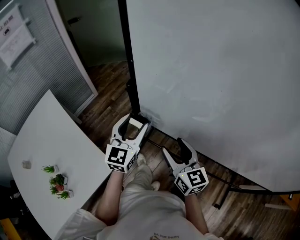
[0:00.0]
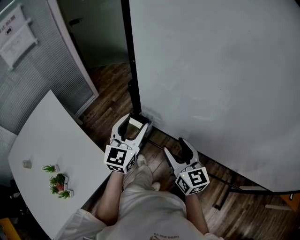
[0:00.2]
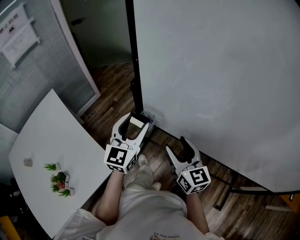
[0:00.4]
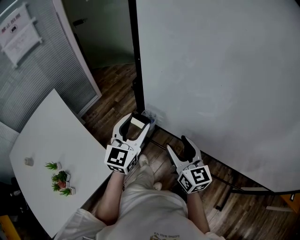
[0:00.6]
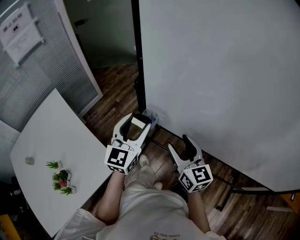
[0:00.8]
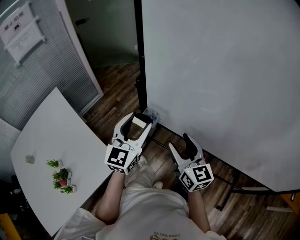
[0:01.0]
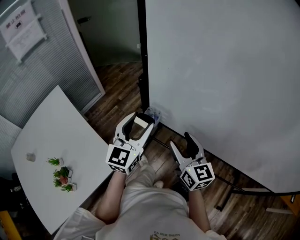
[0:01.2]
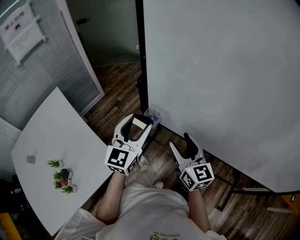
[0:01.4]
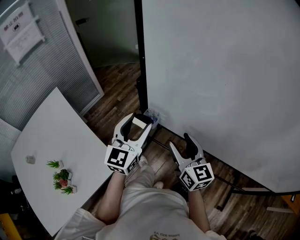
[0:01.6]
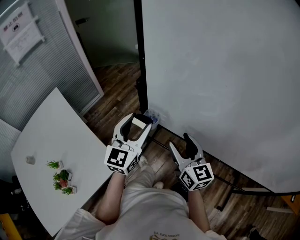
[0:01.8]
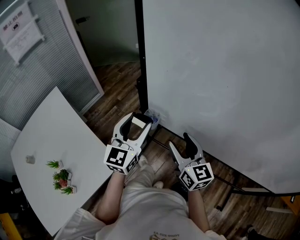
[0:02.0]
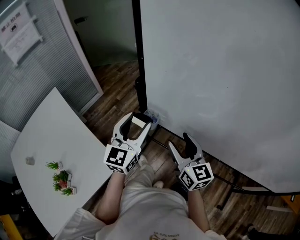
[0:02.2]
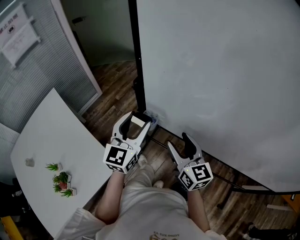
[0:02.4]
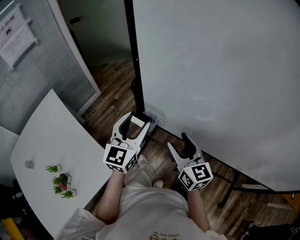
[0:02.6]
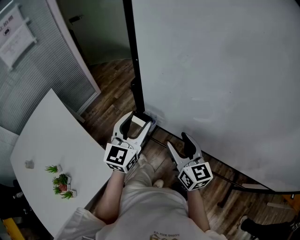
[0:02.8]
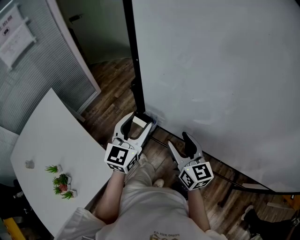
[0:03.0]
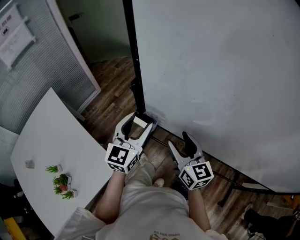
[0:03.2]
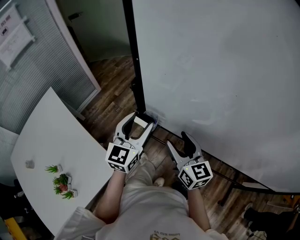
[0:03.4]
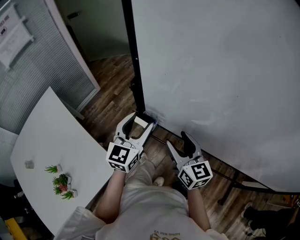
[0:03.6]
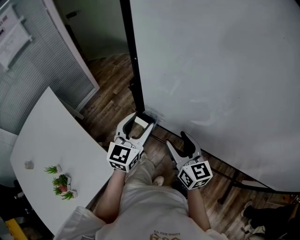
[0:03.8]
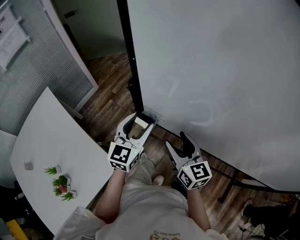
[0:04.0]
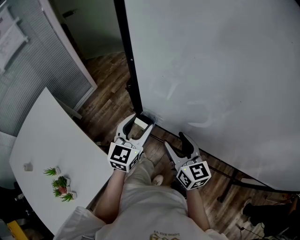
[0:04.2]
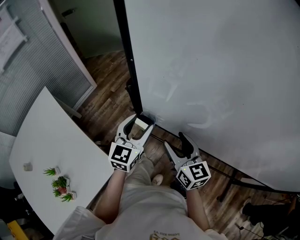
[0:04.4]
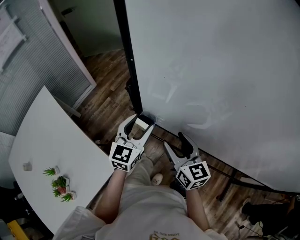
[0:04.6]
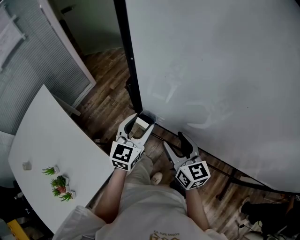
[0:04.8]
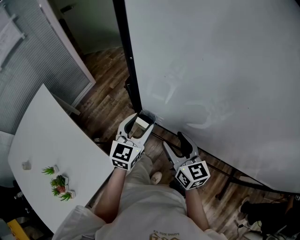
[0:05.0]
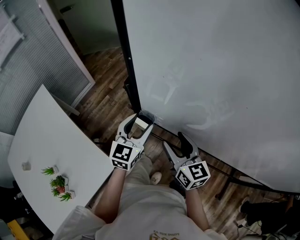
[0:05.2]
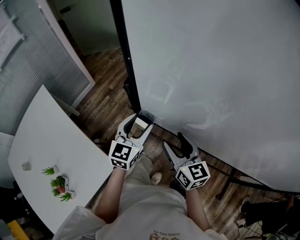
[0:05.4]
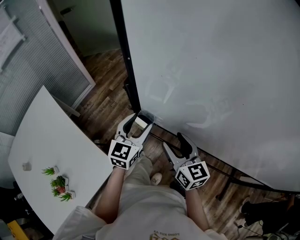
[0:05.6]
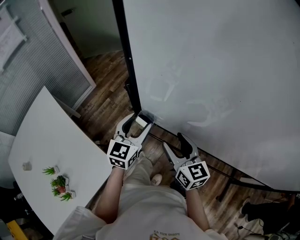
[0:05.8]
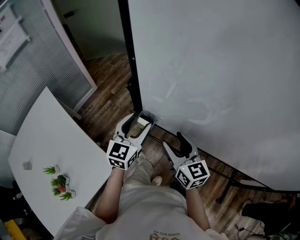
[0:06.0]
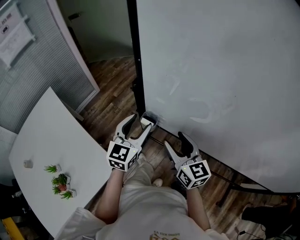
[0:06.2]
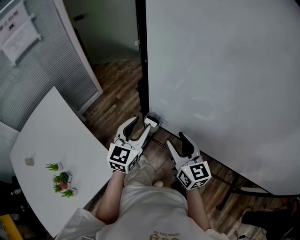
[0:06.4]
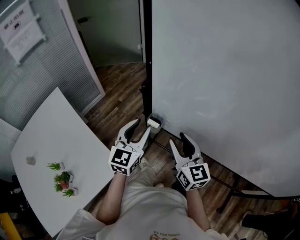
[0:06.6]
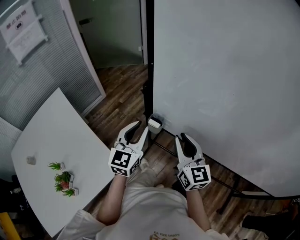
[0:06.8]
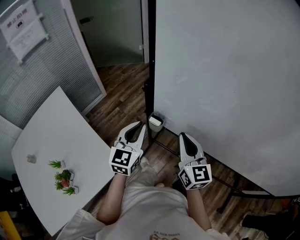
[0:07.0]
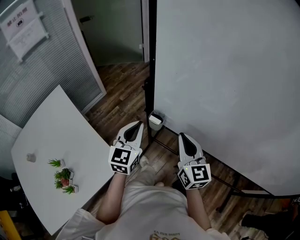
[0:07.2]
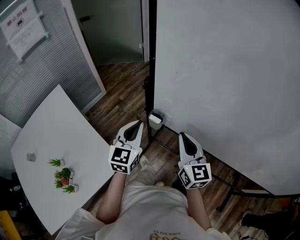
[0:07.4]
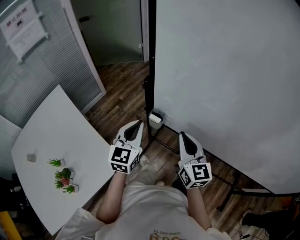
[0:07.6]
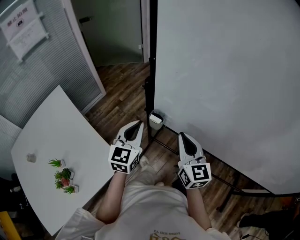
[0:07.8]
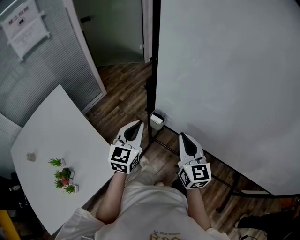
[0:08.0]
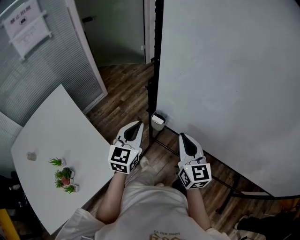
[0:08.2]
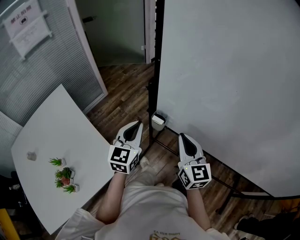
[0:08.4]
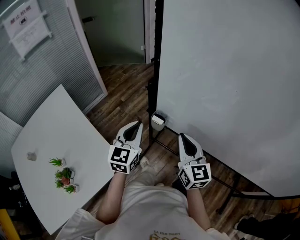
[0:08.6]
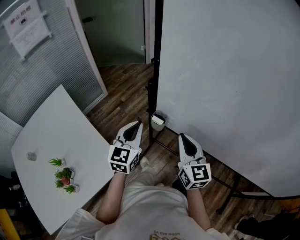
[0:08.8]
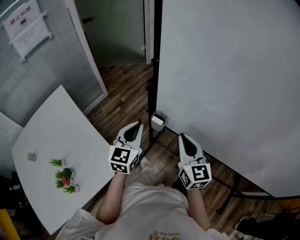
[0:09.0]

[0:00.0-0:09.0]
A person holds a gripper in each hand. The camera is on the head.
0:00.0 to 0:01.6: The left gripper changes place by approximately 5 cm.
0:01.6 to 0:03.0: There are only small adjustments of the grippers.
0:03.0 to 0:04.4: The left gripper travels downward by approximately 5 cm.
0:04.4 to 0:06.0: The grippers move only a little.
0:06.0 to 0:07.6: The left gripper is displaced backward by some 5 cm, and closes up. Meanwhile the right gripper shifts approximately 5 cm upward, and closes.
0:07.6 to 0:09.0: The grippers stay close to where they were, moving slightly.

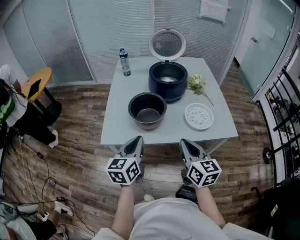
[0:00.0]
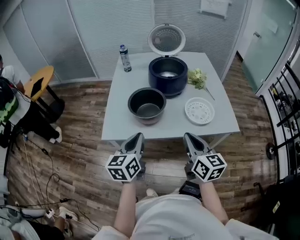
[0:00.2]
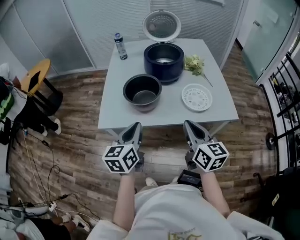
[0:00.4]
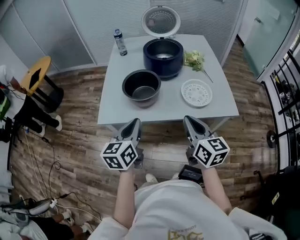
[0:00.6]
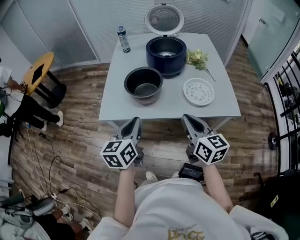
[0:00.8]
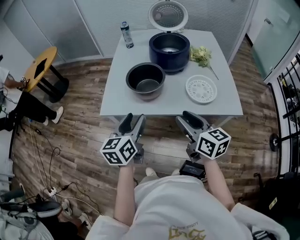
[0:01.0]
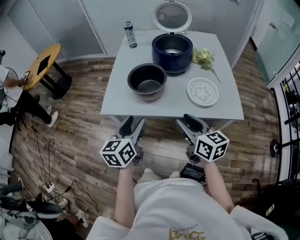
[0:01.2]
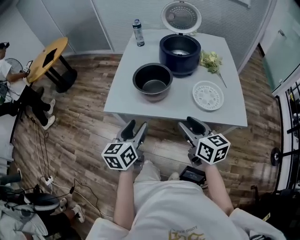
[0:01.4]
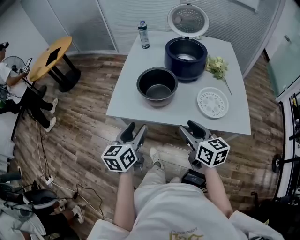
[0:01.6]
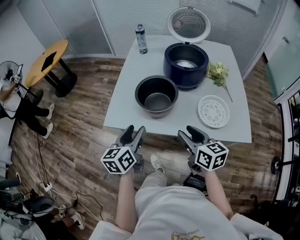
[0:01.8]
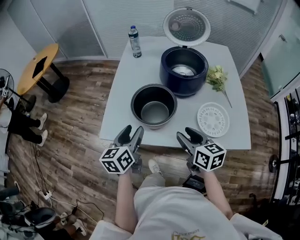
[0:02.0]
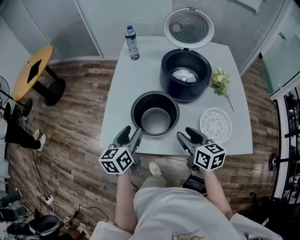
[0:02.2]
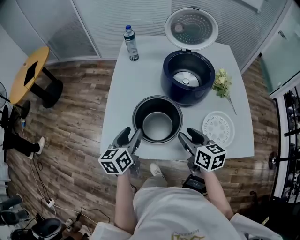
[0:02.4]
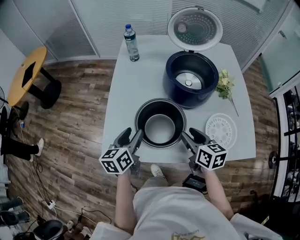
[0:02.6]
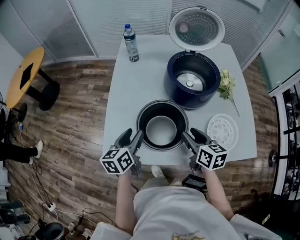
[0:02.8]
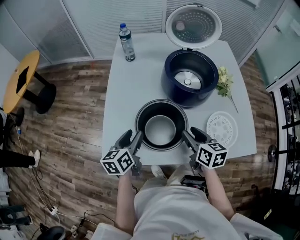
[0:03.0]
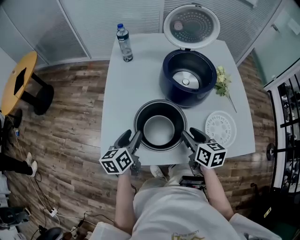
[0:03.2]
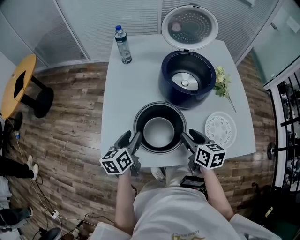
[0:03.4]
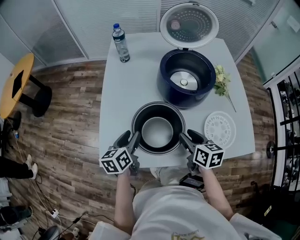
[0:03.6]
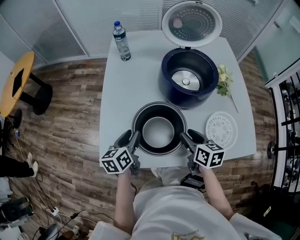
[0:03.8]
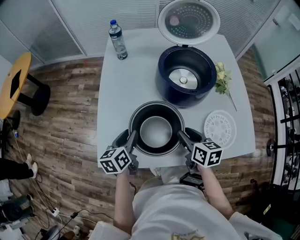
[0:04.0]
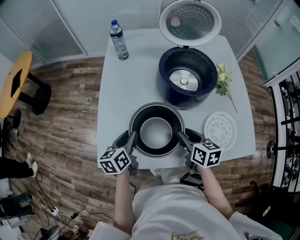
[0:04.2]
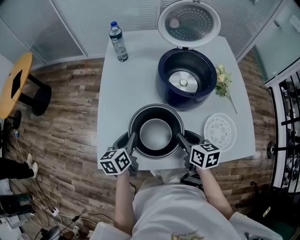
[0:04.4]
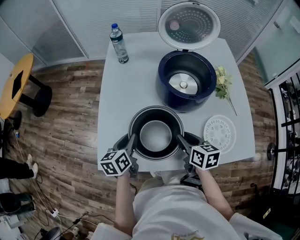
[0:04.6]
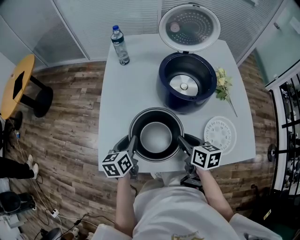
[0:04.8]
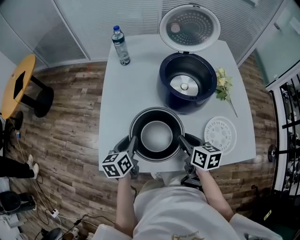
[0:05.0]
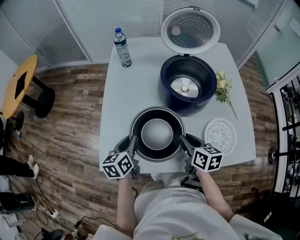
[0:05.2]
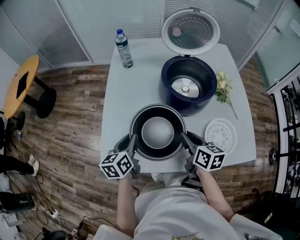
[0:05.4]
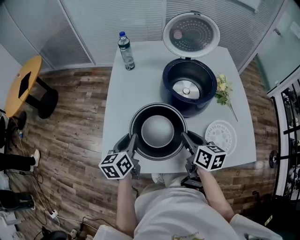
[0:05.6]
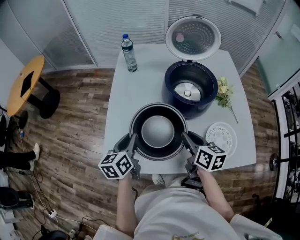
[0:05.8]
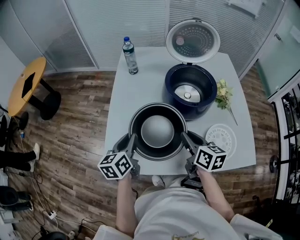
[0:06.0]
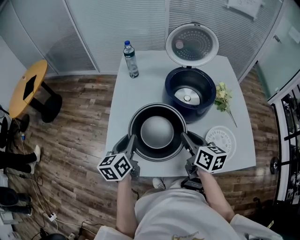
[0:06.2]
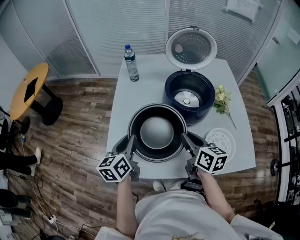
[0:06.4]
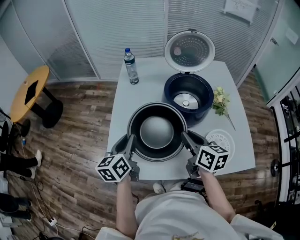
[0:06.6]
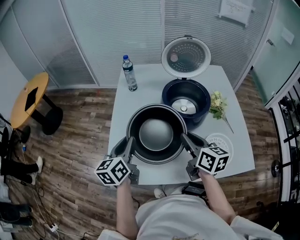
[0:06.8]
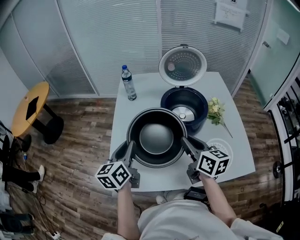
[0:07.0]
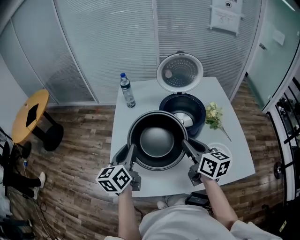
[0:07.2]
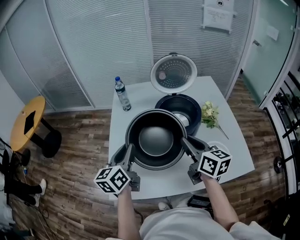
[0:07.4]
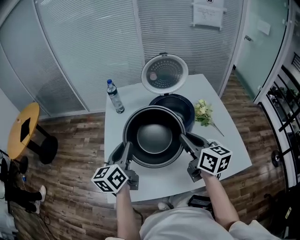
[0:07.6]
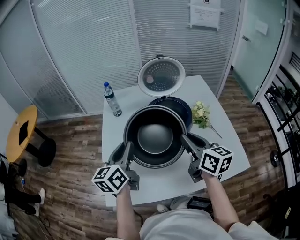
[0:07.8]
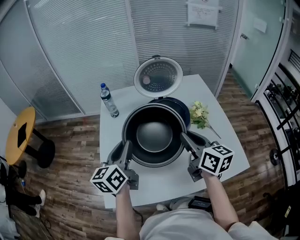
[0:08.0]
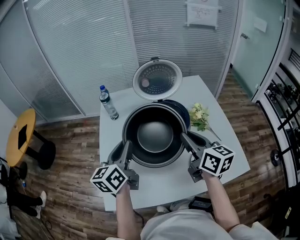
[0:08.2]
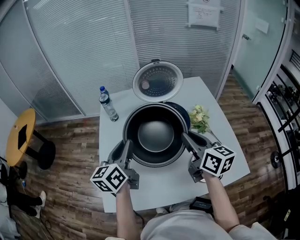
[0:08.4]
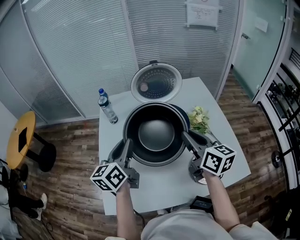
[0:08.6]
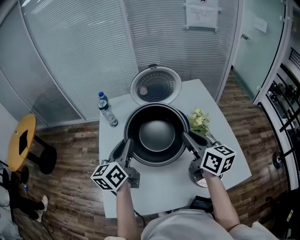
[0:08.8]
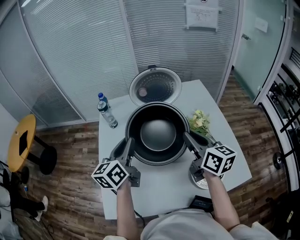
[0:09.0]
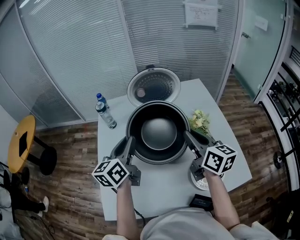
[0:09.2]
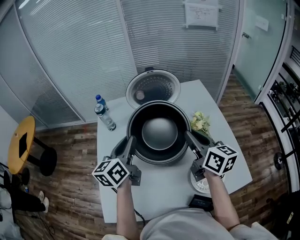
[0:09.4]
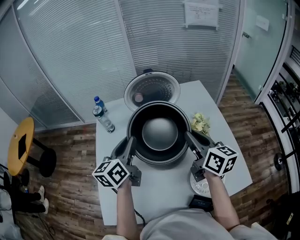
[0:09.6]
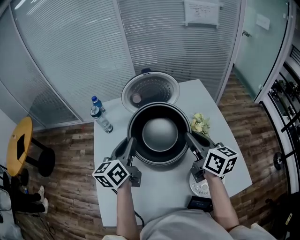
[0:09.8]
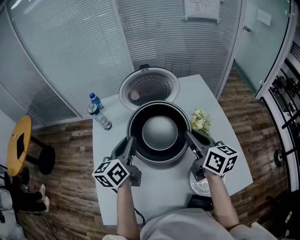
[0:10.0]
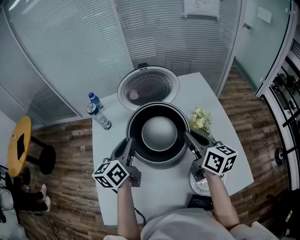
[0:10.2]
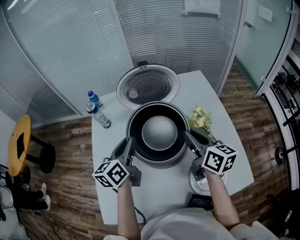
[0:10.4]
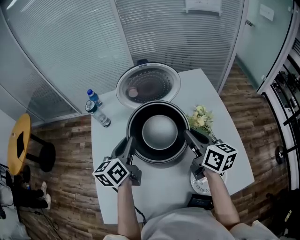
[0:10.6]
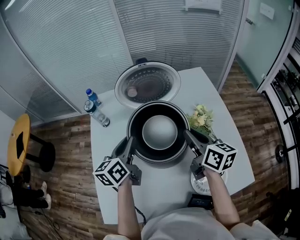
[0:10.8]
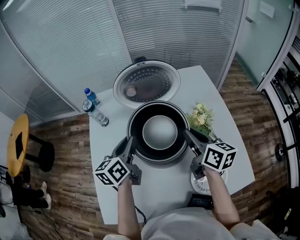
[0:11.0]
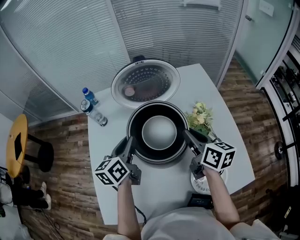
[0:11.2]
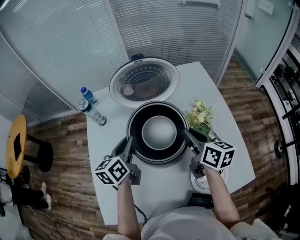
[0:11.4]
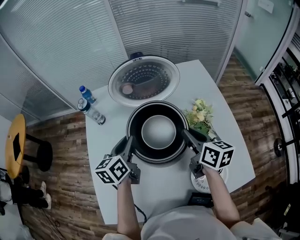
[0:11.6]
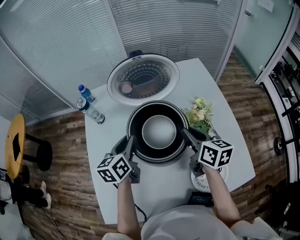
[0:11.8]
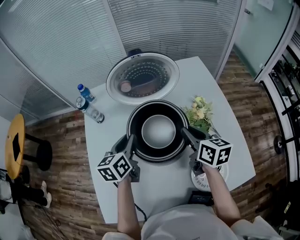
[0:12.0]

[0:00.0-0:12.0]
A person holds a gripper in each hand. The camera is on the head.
0:00.0 to 0:01.6: The left gripper opens, while the right gripper changes place by some 5 cm, changes its angle by some 20 degrees, and opens its fingers.
0:01.6 to 0:03.0: Both grippers move forward, approximately 25 cm. The right gripper rotates about 20 degrees.
0:03.0 to 0:04.4: The left gripper closes up.
0:04.4 to 0:06.0: The grippers both shift upward by approximately 10 cm.
0:06.0 to 0:07.6: Both grippers travel together upward, some 15 cm.
0:07.6 to 0:09.0: The two grippers go about 15 cm forward and to the right.
0:09.0 to 0:10.4: Both grippers move forward and downward, approximately 10 cm.
0:10.4 to 0:12.0: The grippers both shift downward by approximately 10 cm.

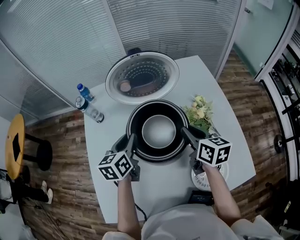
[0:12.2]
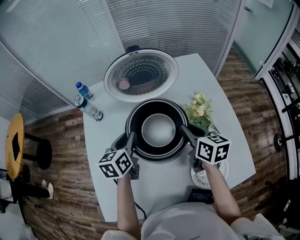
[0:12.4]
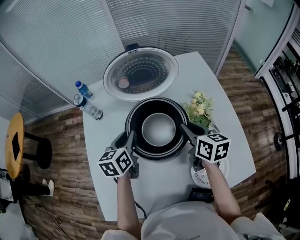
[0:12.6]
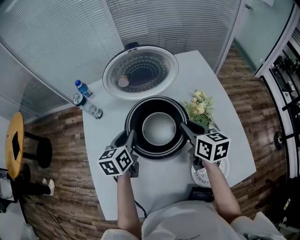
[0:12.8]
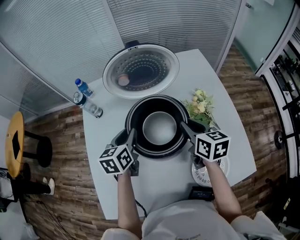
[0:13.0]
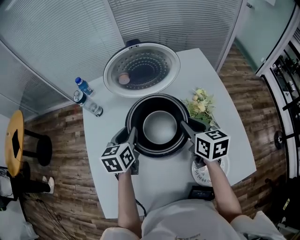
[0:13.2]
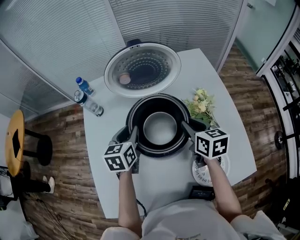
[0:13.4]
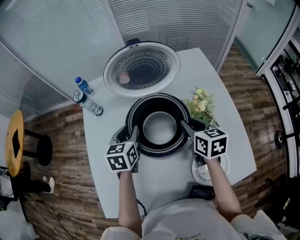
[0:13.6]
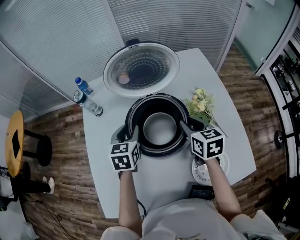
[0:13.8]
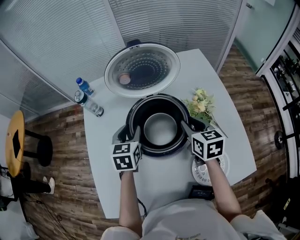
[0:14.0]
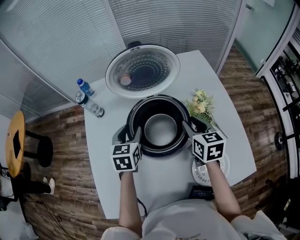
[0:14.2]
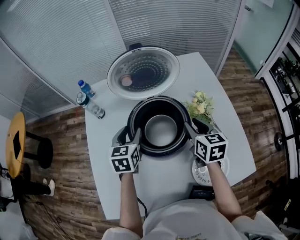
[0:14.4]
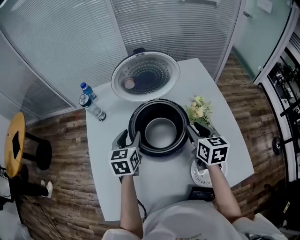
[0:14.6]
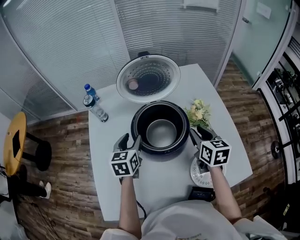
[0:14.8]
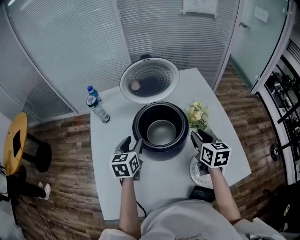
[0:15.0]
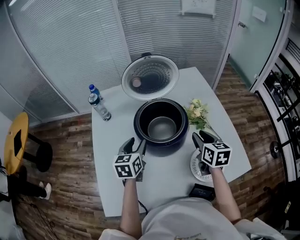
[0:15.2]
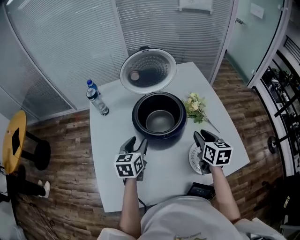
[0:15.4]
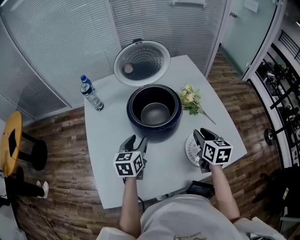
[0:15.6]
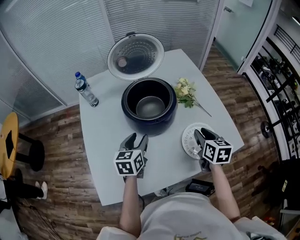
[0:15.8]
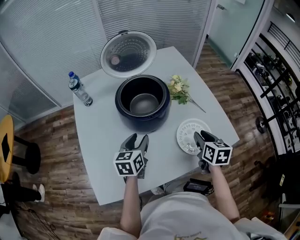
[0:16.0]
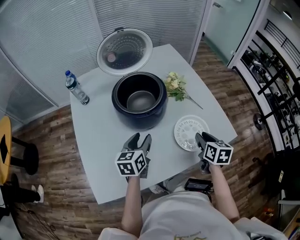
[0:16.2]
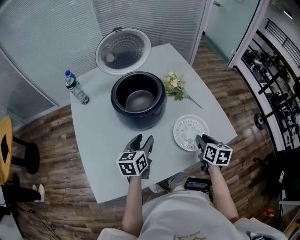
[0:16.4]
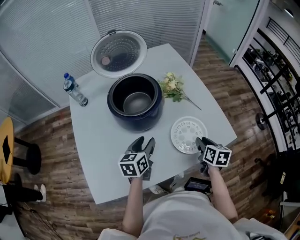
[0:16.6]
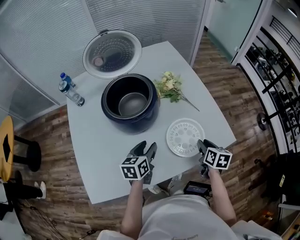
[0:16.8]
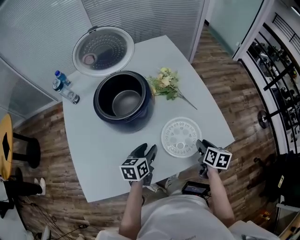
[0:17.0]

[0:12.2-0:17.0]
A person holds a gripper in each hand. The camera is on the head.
0:12.2 to 0:13.8: The left gripper swivels approximately 20 degrees.
0:13.8 to 0:15.4: The two grippers go some 15 cm backward.
0:15.4 to 0:17.0: The left gripper moves to the right and downward, roughly 25 cm, and turns by approximately 20 degrees, while the right gripper moves to the right, downward and backward, roughly 25 cm, and changes its angle by about 30 degrees.
